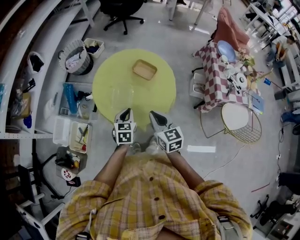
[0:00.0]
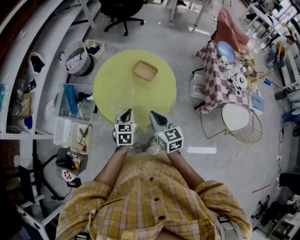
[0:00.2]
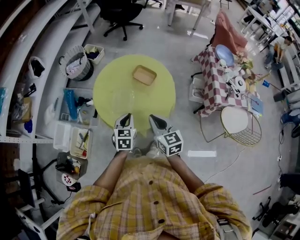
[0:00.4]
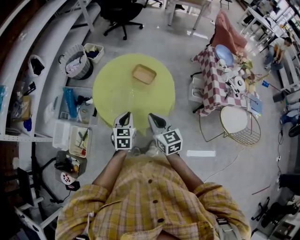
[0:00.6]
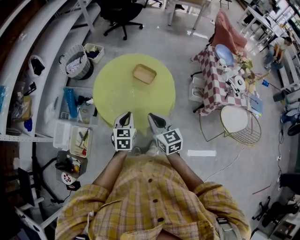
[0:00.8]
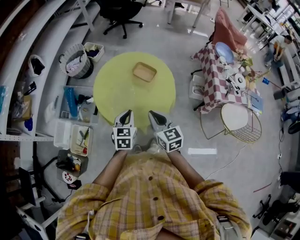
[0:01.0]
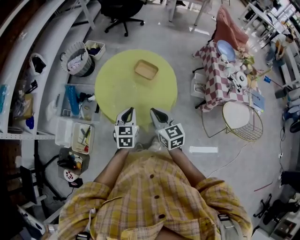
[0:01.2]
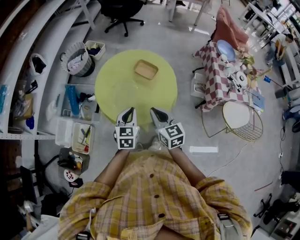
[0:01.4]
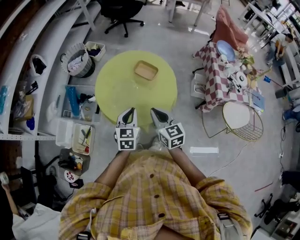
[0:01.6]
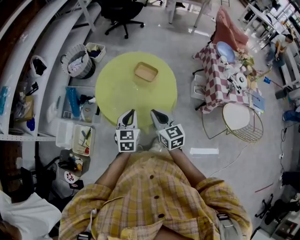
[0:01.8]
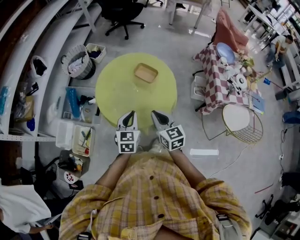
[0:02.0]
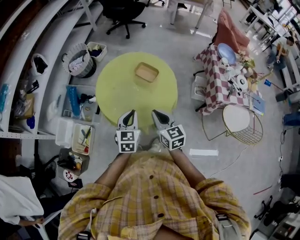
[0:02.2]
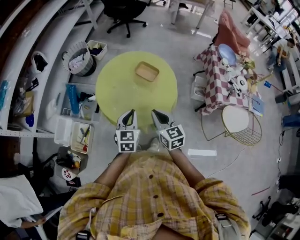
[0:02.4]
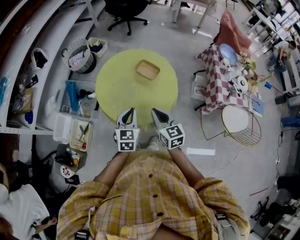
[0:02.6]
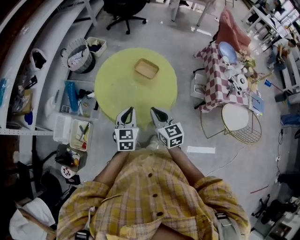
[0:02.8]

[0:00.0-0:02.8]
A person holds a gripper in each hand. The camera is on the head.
0:00.0 to 0:01.4: The left gripper moves upward, about 5 cm.
0:01.4 to 0:02.8: The grippers move only a little.

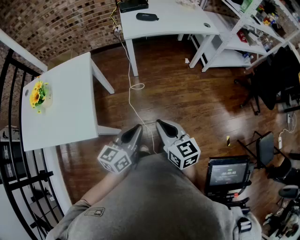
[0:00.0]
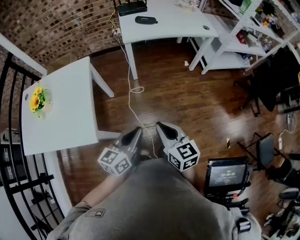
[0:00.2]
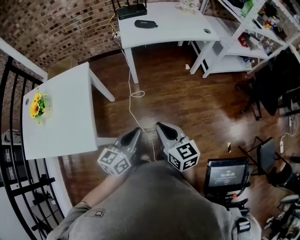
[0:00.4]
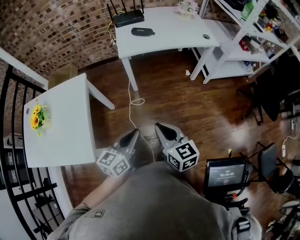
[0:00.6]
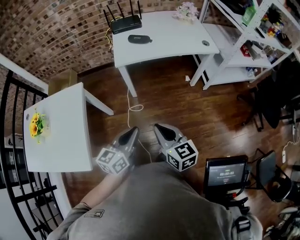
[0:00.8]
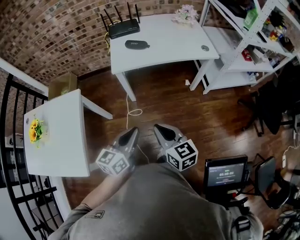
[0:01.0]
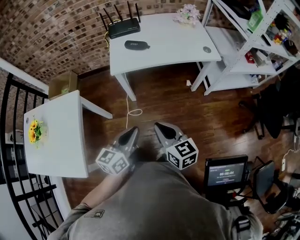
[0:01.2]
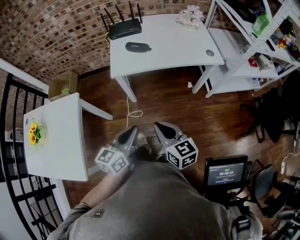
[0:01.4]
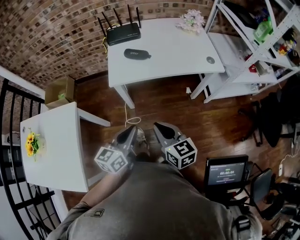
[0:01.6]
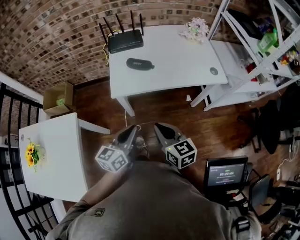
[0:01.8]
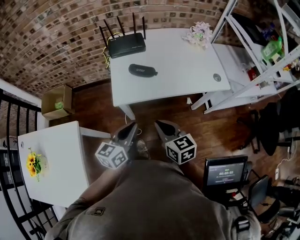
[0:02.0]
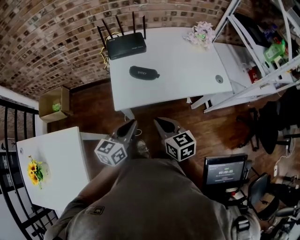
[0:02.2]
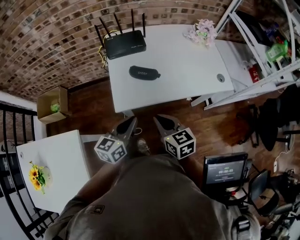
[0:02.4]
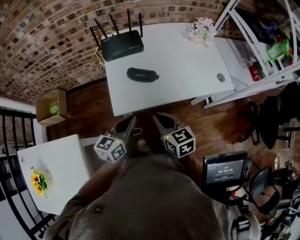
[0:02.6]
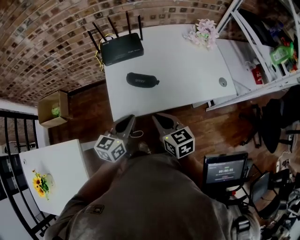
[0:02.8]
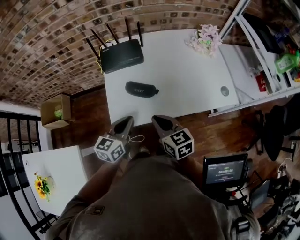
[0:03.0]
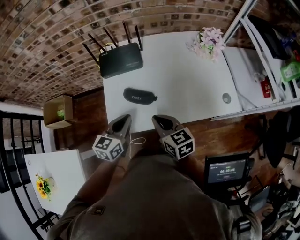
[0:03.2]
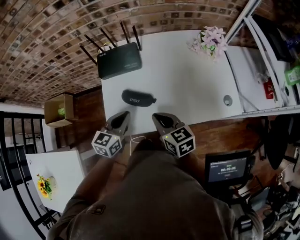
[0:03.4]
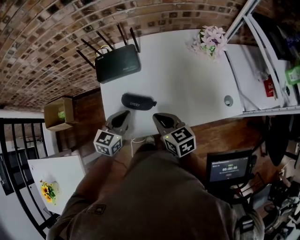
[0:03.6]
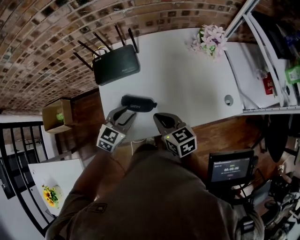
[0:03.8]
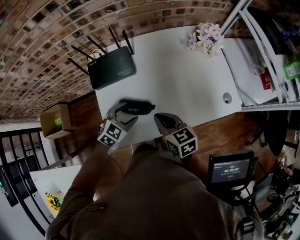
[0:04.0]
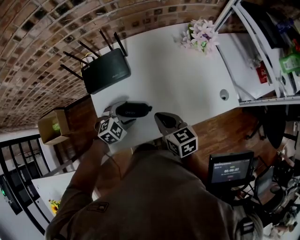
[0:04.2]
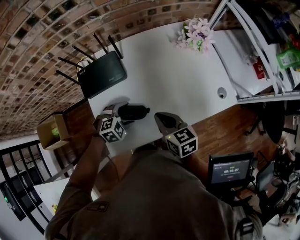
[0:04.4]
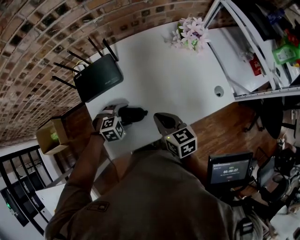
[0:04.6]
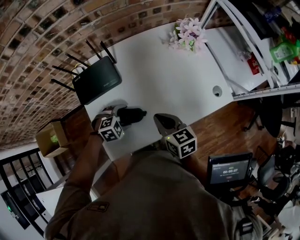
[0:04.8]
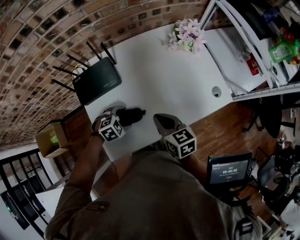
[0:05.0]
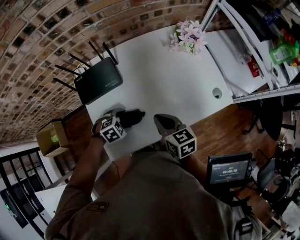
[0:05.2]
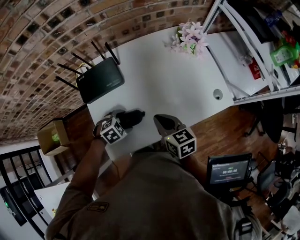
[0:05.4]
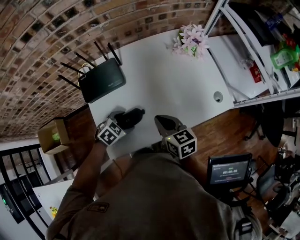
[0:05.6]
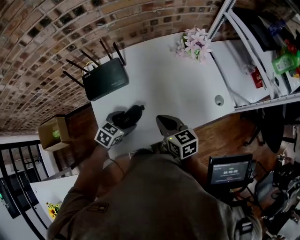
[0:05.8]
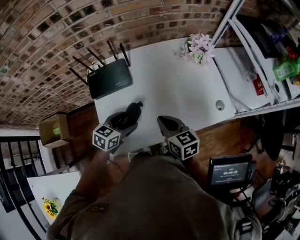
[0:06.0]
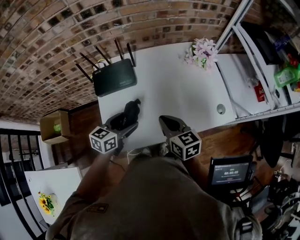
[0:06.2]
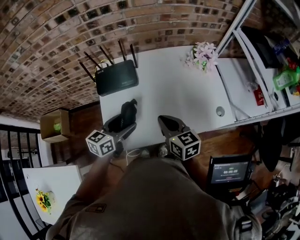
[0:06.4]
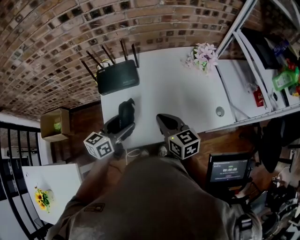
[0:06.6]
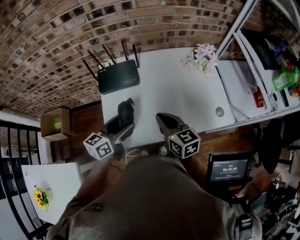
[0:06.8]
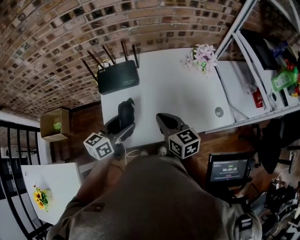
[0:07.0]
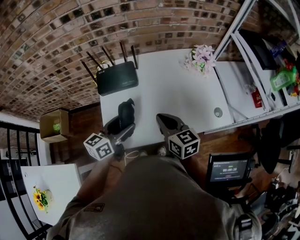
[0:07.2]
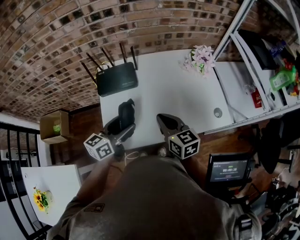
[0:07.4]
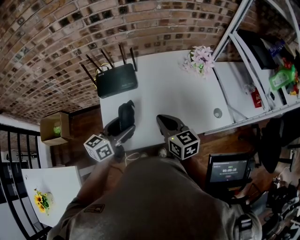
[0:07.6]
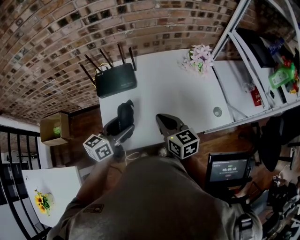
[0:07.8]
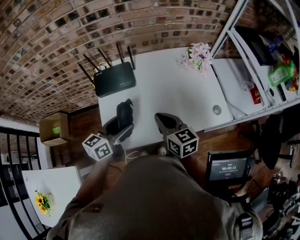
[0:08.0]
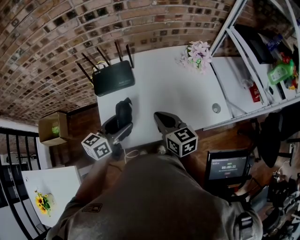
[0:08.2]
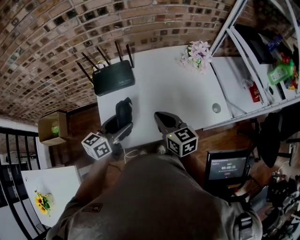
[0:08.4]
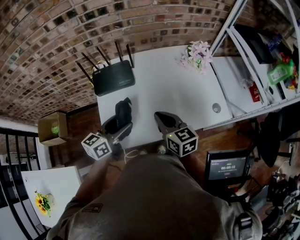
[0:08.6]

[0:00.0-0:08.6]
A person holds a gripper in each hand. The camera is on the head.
0:00.0 to 0:01.4: The two grippers go some 30 cm forward and to the right.
0:01.4 to 0:02.8: The two grippers go roughly 35 cm forward.
0:02.8 to 0:04.4: The right gripper travels forward and to the right by roughly 15 cm; the left gripper travels forward and downward by about 20 cm, angles its fingers downward, by roughly 40 degrees, and opens its fingers.
0:04.4 to 0:05.8: The left gripper swivels roughly 40 degrees.
0:05.8 to 0:07.2: The left gripper moves upward, roughly 15 cm, and tilts its fingers some 40 degrees upward, while the right gripper goes some 5 cm upward.
0:07.2 to 0:08.6: Neither gripper changes place.

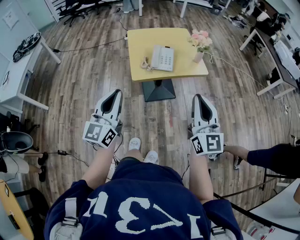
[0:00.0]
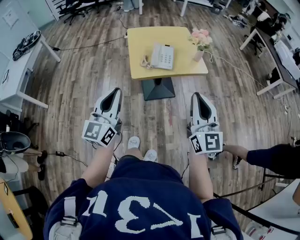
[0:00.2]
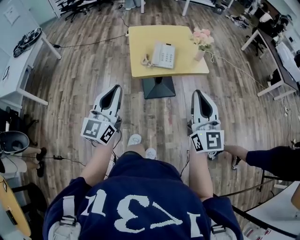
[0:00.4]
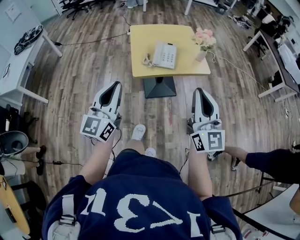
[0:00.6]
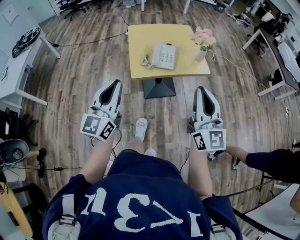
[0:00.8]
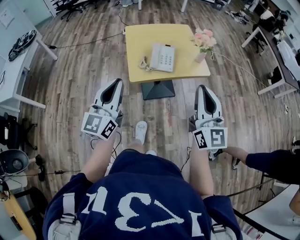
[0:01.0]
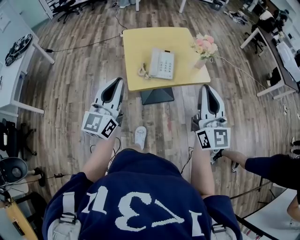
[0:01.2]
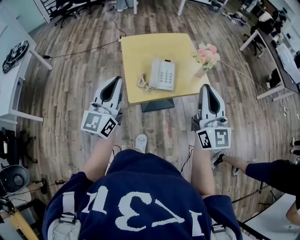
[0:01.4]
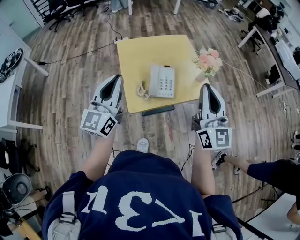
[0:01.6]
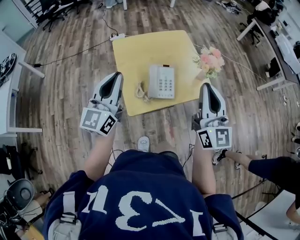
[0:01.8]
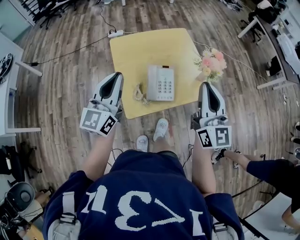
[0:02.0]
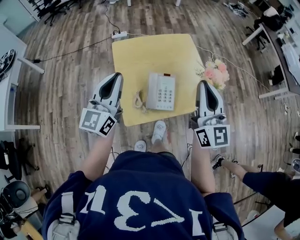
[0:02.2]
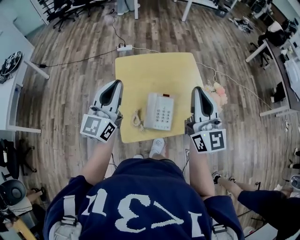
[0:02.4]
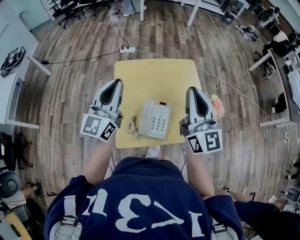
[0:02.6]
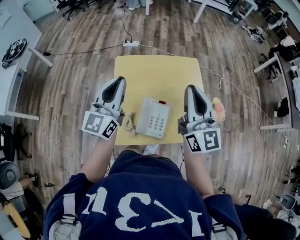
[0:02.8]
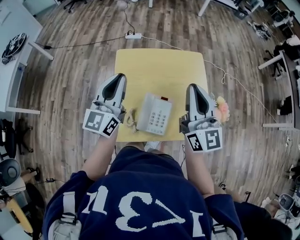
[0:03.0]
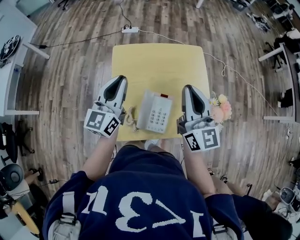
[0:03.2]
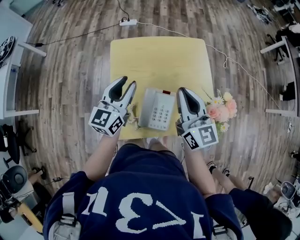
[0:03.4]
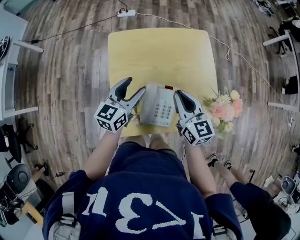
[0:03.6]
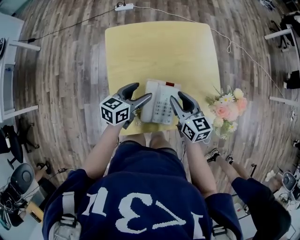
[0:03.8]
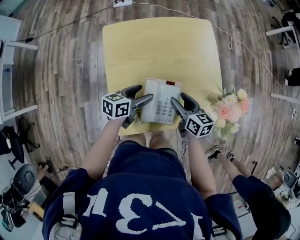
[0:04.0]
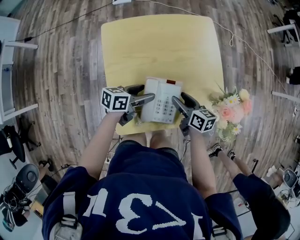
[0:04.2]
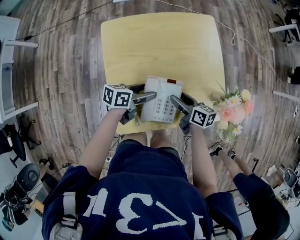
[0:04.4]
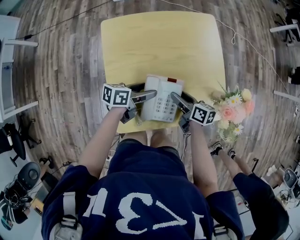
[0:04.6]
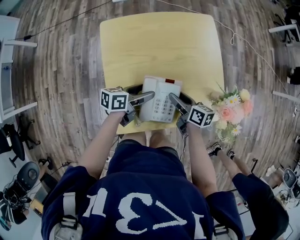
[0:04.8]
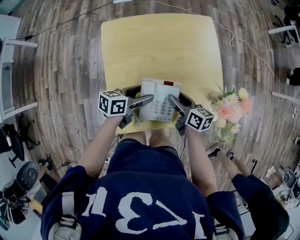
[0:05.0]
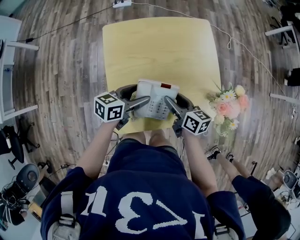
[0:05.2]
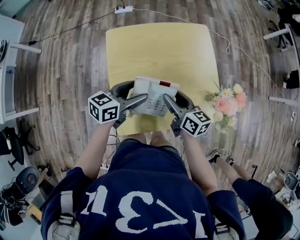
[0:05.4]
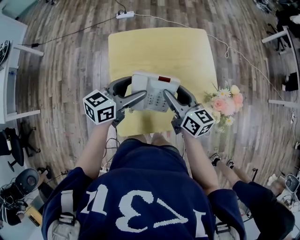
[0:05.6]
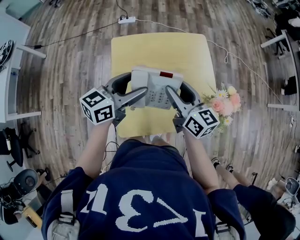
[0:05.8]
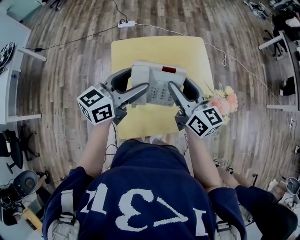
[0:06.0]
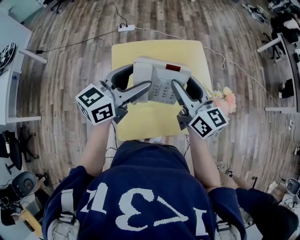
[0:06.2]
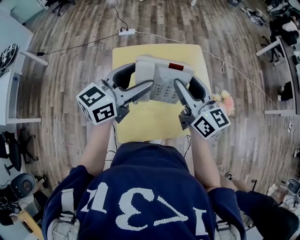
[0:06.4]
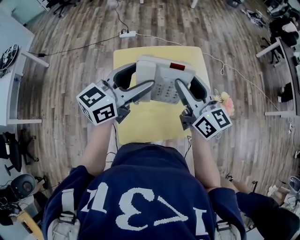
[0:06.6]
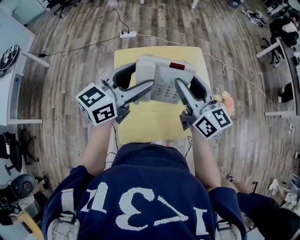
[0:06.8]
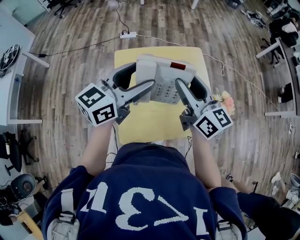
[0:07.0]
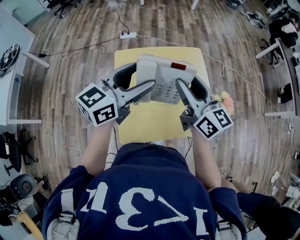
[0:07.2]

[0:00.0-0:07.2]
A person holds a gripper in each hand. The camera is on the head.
0:00.0 to 0:01.4: The two grippers go about 20 cm forward.
0:01.4 to 0:02.8: The two grippers go roughly 30 cm forward.
0:02.8 to 0:04.4: The grippers both shift downward by roughly 35 cm. The right gripper angles its fingers downward, by roughly 40 degrees, and opens up; the left gripper tilts its fingers some 40 degrees downward, and opens.
0:04.4 to 0:05.8: The grippers both shift upward by roughly 20 cm. The left gripper rotates roughly 40 degrees, while the right gripper swivels roughly 30 degrees.
0:05.8 to 0:07.2: The grippers both shift upward by approximately 10 cm.

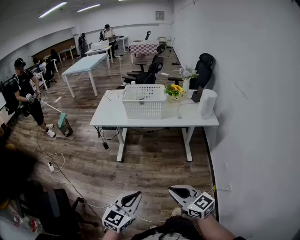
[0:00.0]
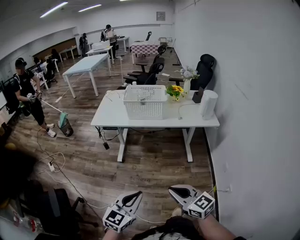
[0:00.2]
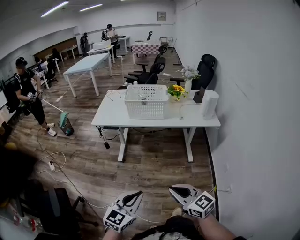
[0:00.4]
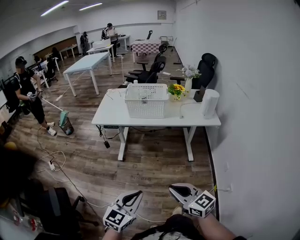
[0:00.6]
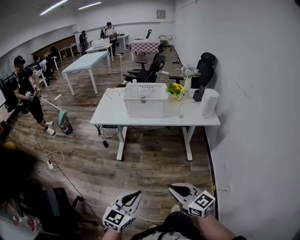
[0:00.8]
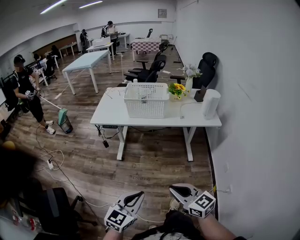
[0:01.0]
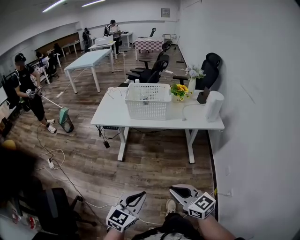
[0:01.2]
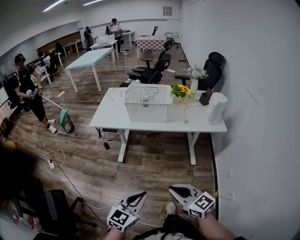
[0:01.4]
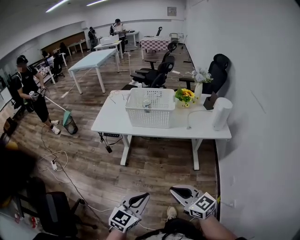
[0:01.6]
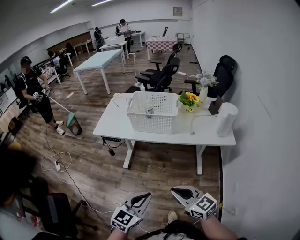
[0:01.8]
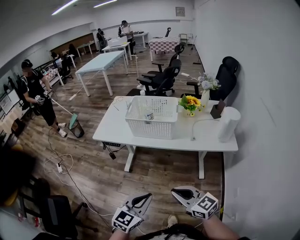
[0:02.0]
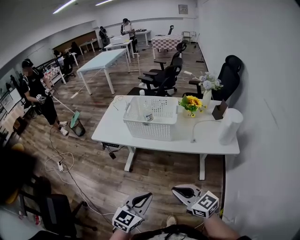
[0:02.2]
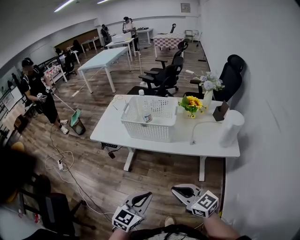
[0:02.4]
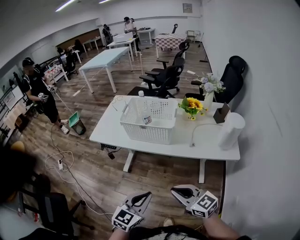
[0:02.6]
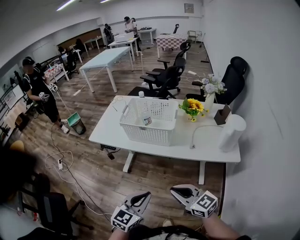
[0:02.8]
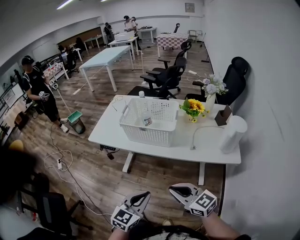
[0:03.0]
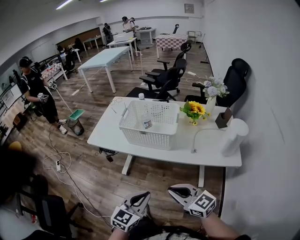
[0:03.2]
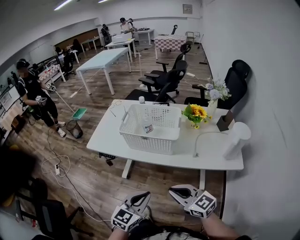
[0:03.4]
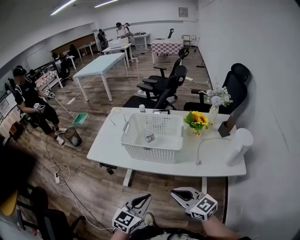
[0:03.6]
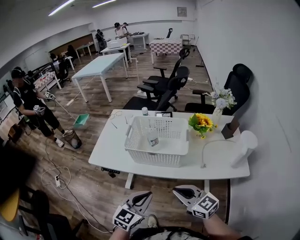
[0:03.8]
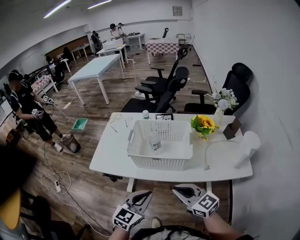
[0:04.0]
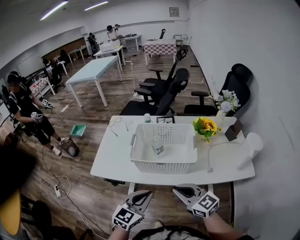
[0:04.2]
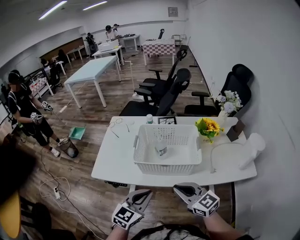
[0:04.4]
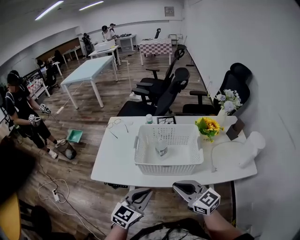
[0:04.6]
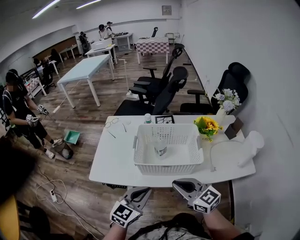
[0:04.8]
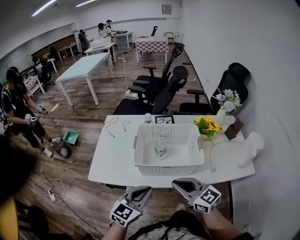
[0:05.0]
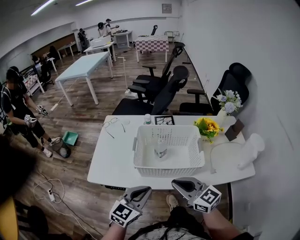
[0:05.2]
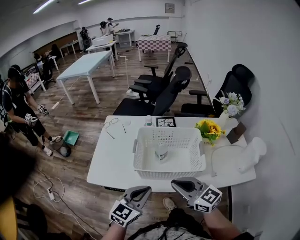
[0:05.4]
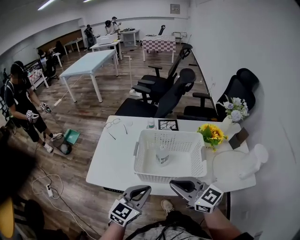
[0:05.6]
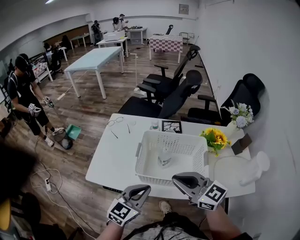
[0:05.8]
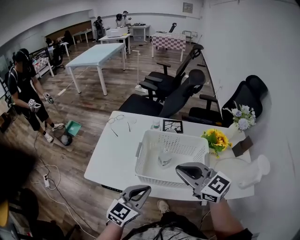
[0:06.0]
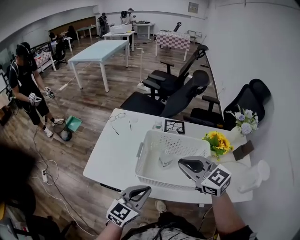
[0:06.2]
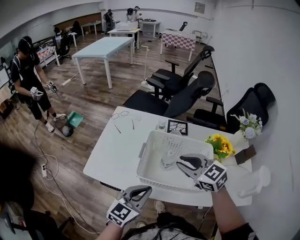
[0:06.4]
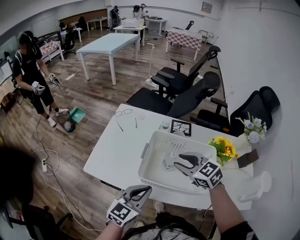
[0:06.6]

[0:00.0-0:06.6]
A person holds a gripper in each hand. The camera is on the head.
0:00.0 to 0:01.6: The left gripper goes some 15 cm forward and to the right. Meanwhile the right gripper travels forward by approximately 15 cm.
0:01.6 to 0:03.2: The grippers both shift forward and to the right by roughly 20 cm.
0:03.2 to 0:05.0: The two grippers go approximately 25 cm forward and to the left.
0:05.0 to 0:06.6: The left gripper travels forward by some 10 cm, while the right gripper heads forward, covering approximately 20 cm, swivels approximately 30 degrees, and opens up.
